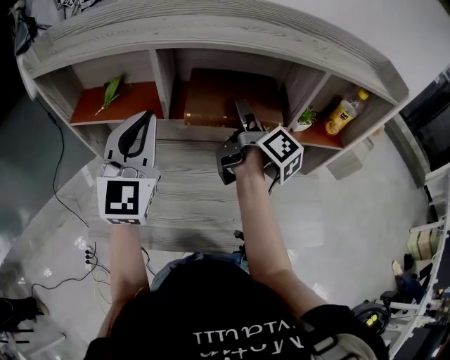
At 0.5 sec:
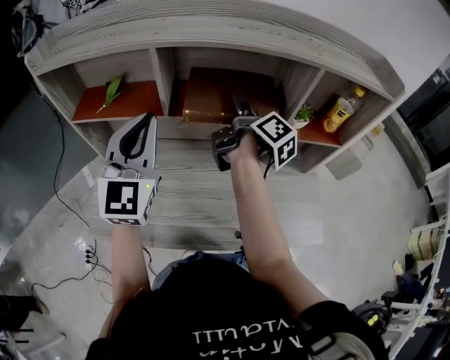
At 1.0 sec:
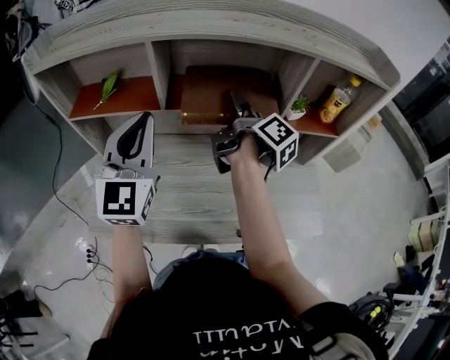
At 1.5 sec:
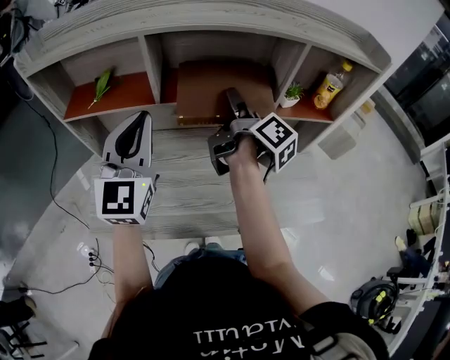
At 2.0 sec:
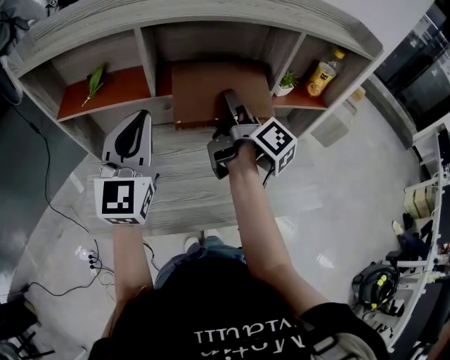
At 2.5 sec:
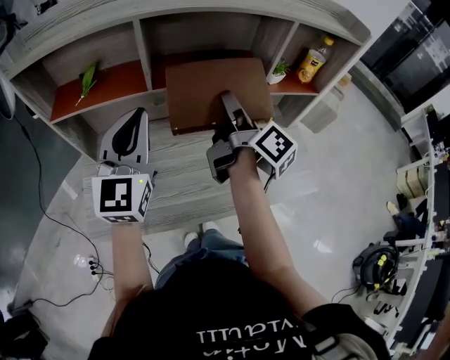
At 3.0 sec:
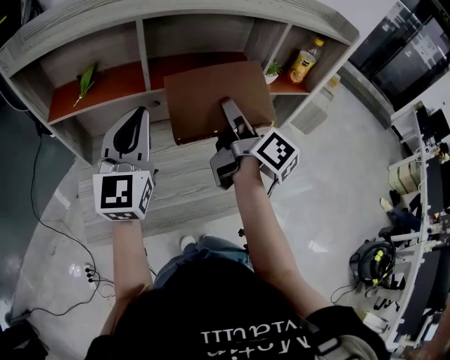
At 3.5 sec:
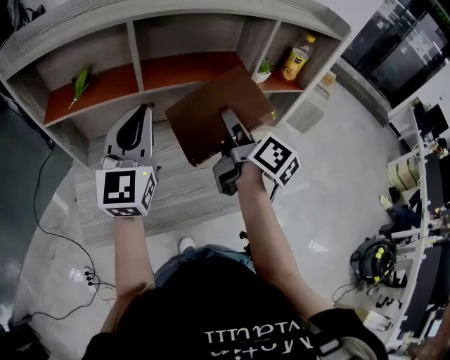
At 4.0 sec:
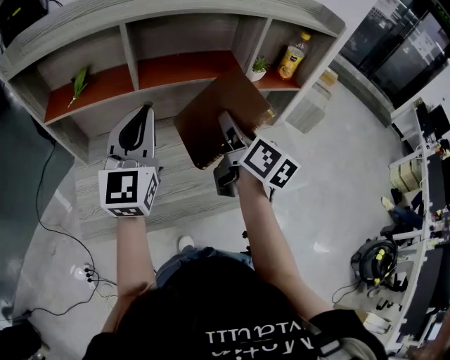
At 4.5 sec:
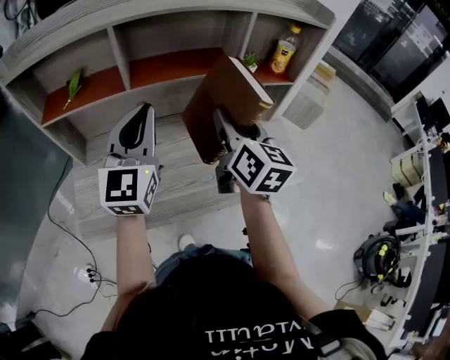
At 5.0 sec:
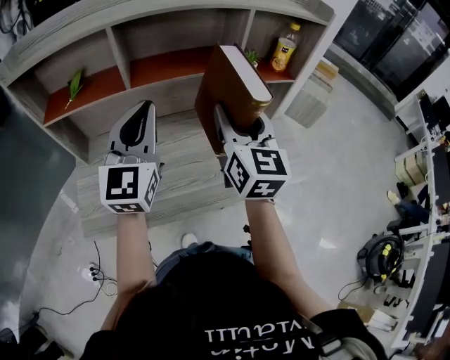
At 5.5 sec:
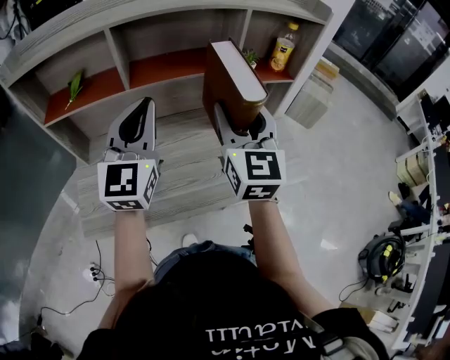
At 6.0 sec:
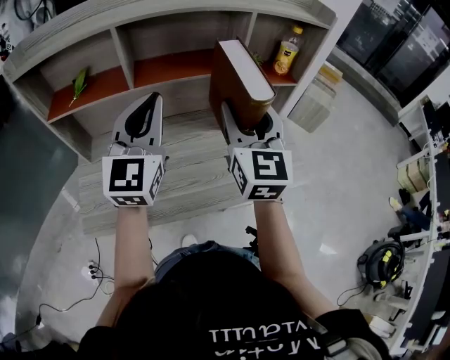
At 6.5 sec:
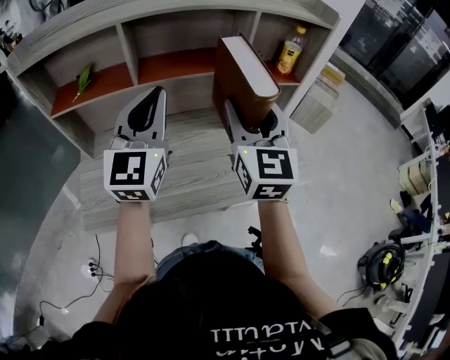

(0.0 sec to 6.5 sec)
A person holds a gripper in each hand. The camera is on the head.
0.0 sec - 2.0 sec: The left gripper moves approximately 5 cm. Meanwhile the right gripper goes about 5 cm backward.
2.0 sec - 4.5 sec: The left gripper moves to the right, approximately 5 cm; the right gripper is displaced backward and to the right by some 15 cm, and twists approximately 50 degrees counterclockwise, seen from behind.
4.5 sec - 6.5 sec: The right gripper travels upward by approximately 5 cm, and swivels approximately 30 degrees.

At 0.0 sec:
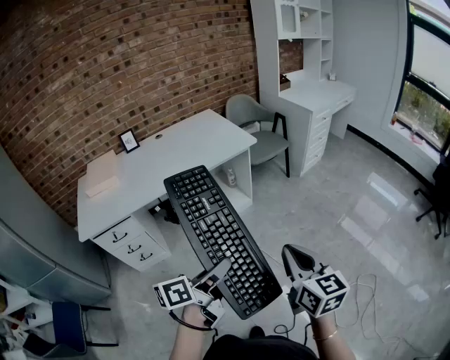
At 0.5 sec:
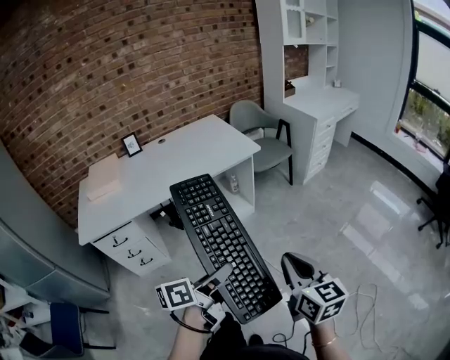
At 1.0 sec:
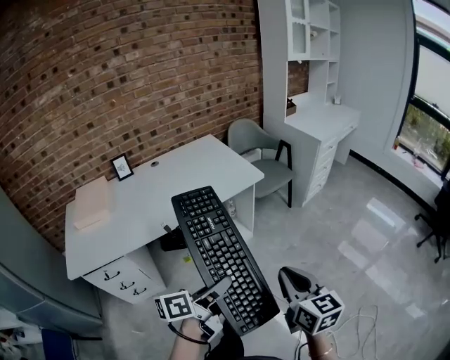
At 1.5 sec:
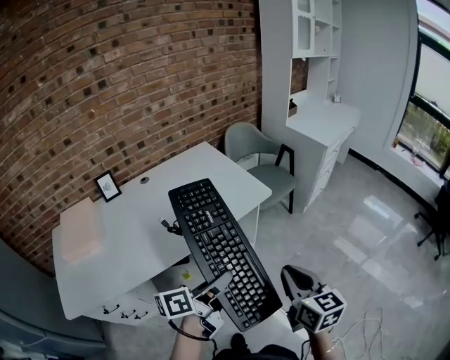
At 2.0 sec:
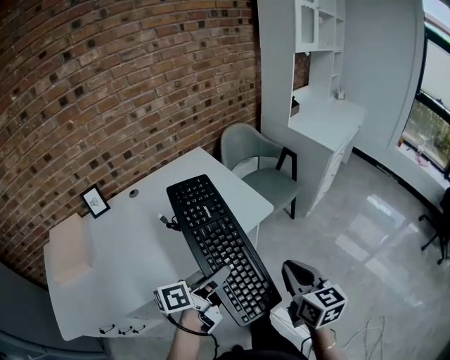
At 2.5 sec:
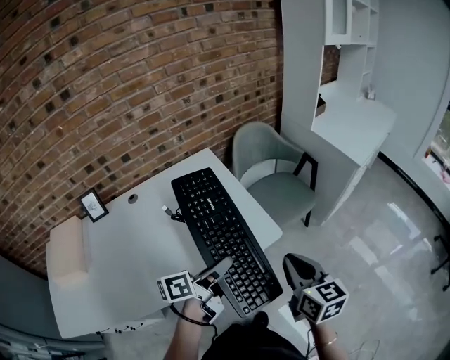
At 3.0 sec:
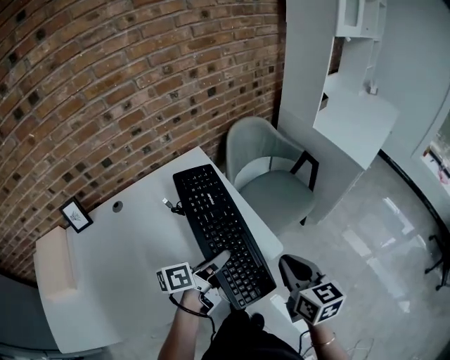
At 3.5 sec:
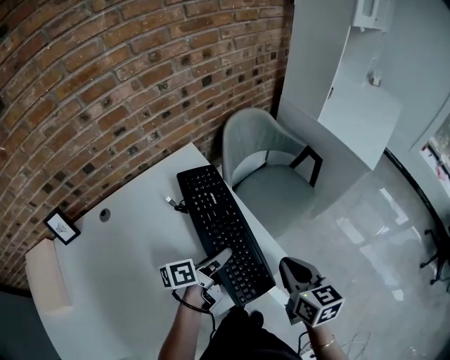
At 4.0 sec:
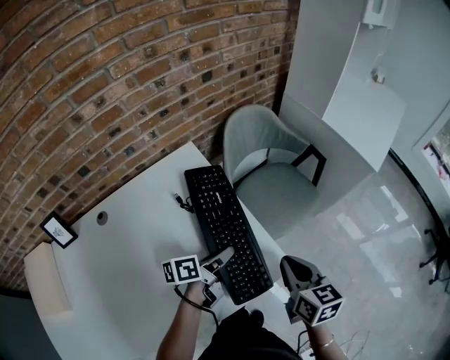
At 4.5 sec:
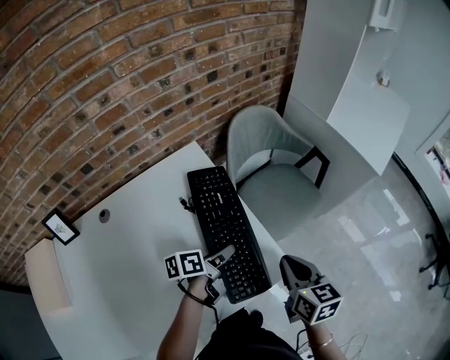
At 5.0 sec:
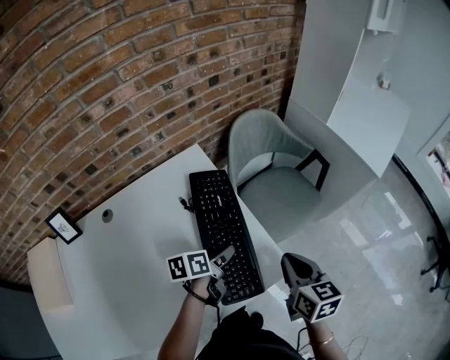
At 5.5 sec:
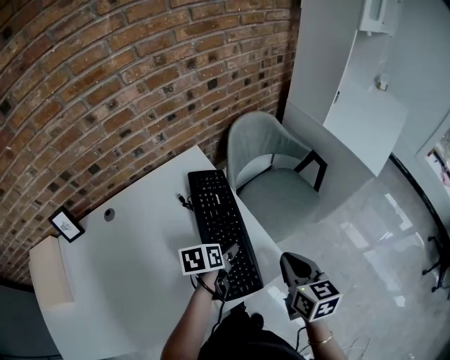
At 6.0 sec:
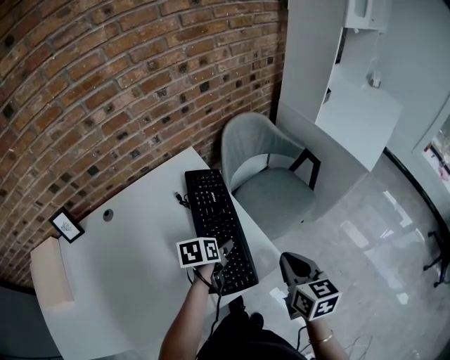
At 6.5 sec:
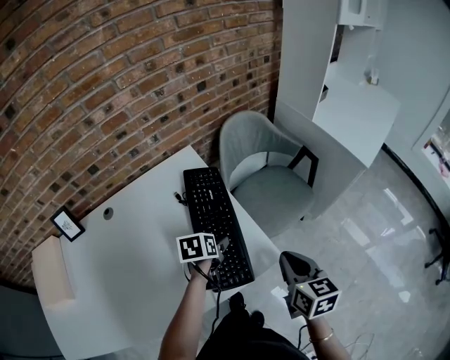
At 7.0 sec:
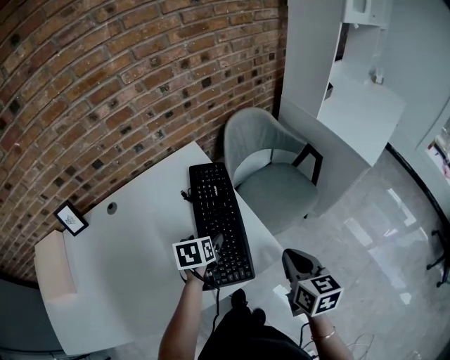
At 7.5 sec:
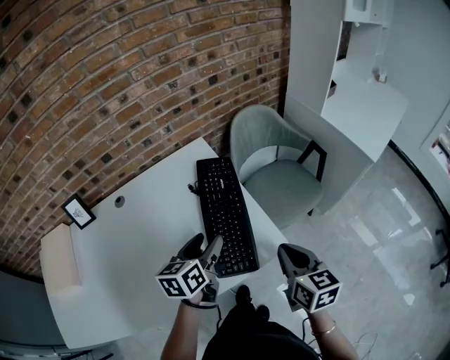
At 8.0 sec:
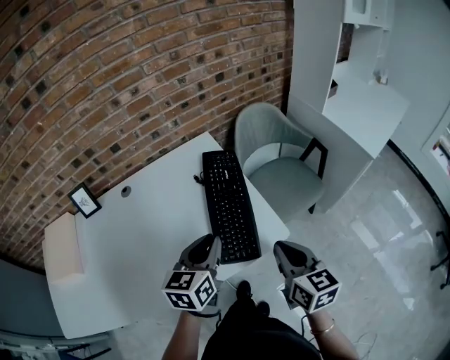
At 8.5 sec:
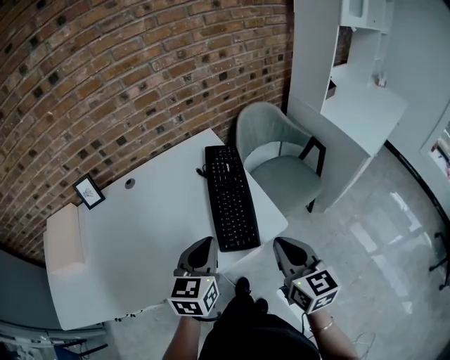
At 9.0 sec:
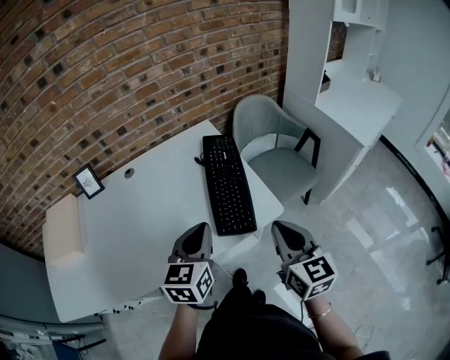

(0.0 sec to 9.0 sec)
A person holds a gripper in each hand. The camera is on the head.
0.0 sec - 2.0 sec: The two grippers travel together, forward, some 50 cm.
2.0 sec - 4.5 sec: The right gripper goes roughly 35 cm forward. The left gripper goes some 40 cm forward and downward, and swivels roughly 30 degrees.
4.5 sec - 7.0 sec: The left gripper shifts by some 5 cm, changes its angle by about 50 degrees, and opens up, while the right gripper shifts by roughly 5 cm.
7.0 sec - 9.0 sec: The right gripper heads backward, upward and to the left, covering roughly 15 cm, and changes its angle by some 20 degrees, while the left gripper heads backward and upward, covering some 25 cm, points its fingers approximately 40 degrees further upward, and closes its fingers.

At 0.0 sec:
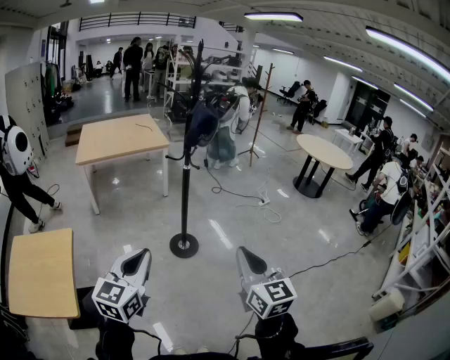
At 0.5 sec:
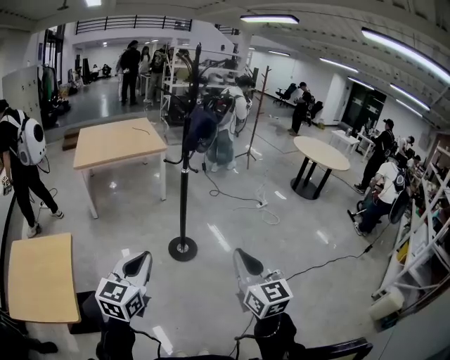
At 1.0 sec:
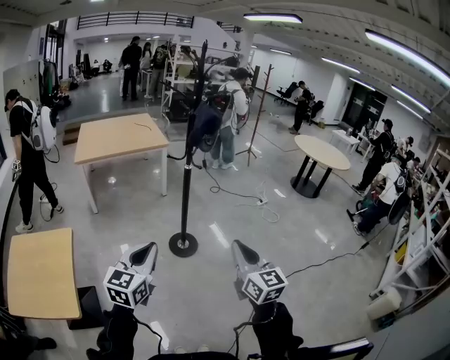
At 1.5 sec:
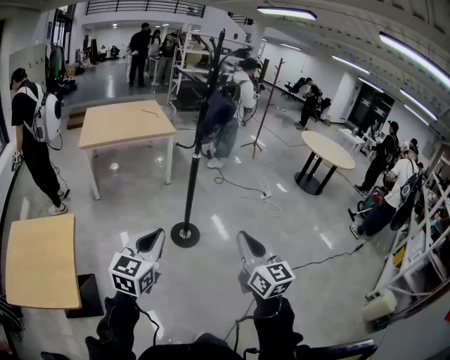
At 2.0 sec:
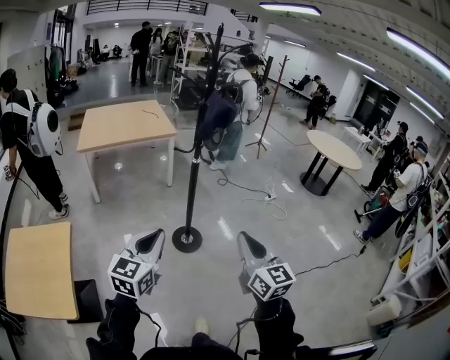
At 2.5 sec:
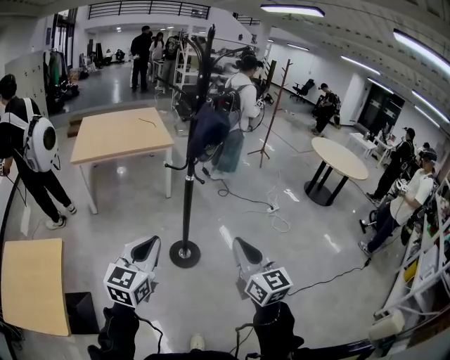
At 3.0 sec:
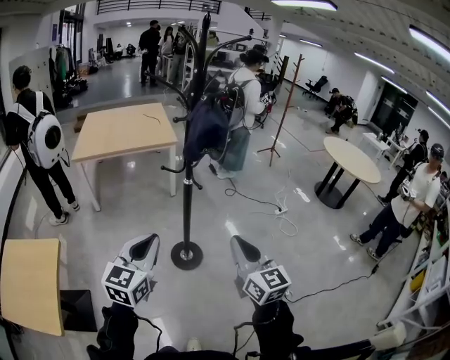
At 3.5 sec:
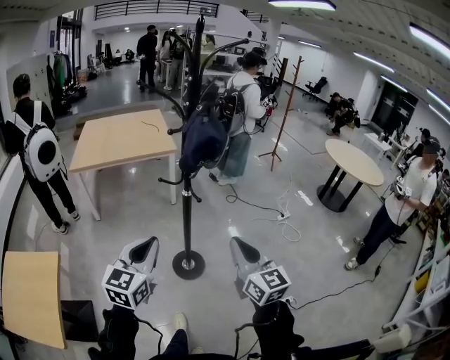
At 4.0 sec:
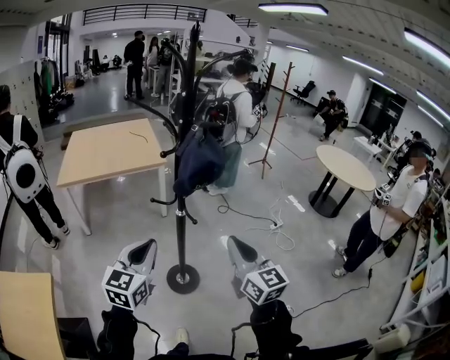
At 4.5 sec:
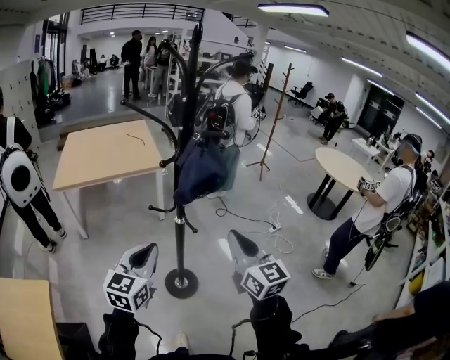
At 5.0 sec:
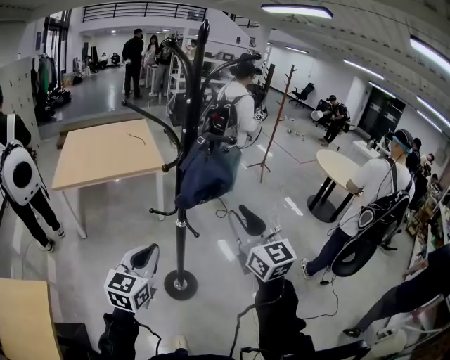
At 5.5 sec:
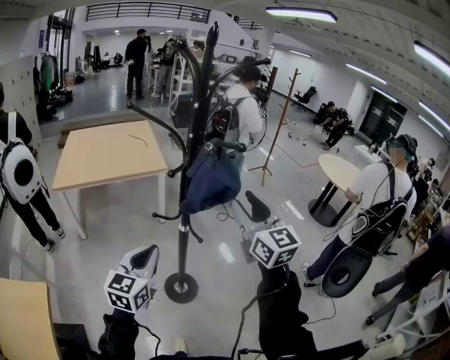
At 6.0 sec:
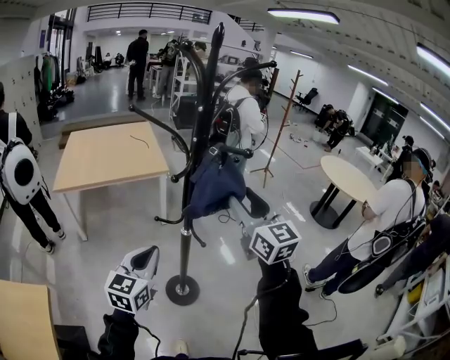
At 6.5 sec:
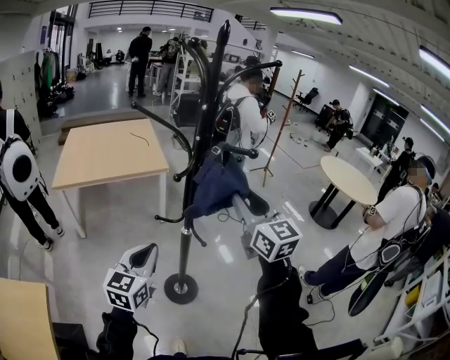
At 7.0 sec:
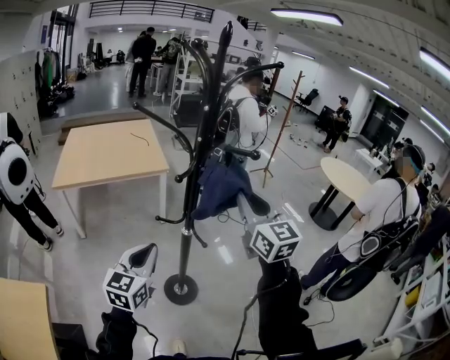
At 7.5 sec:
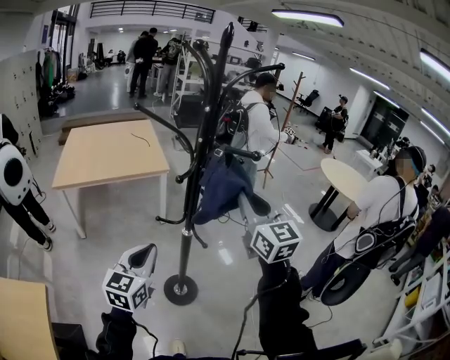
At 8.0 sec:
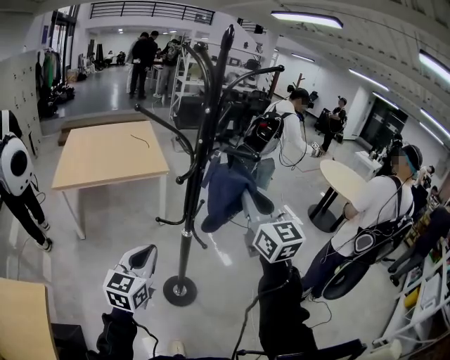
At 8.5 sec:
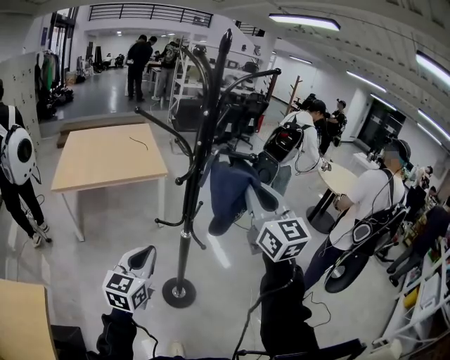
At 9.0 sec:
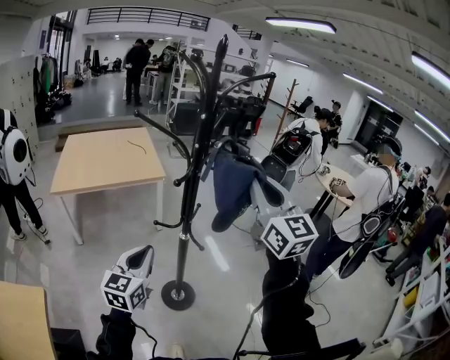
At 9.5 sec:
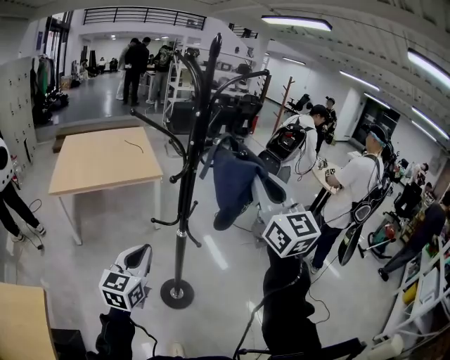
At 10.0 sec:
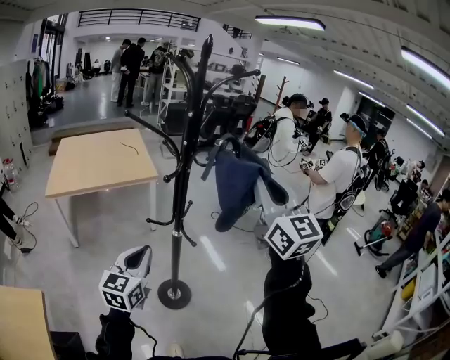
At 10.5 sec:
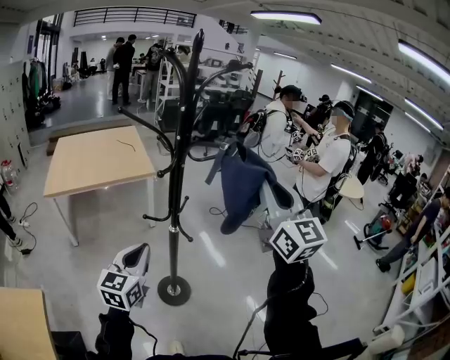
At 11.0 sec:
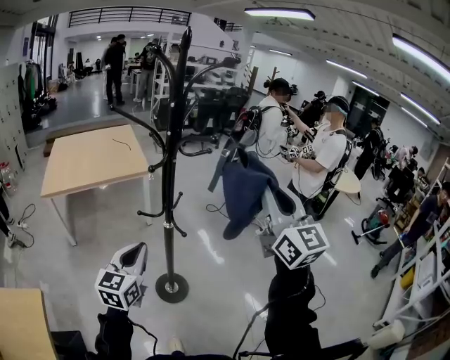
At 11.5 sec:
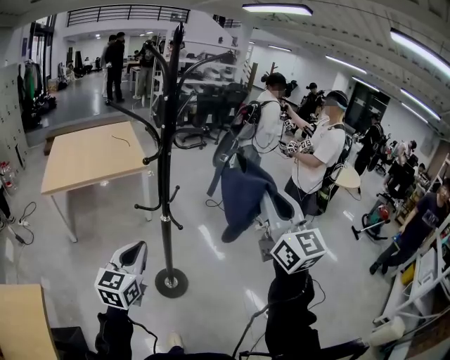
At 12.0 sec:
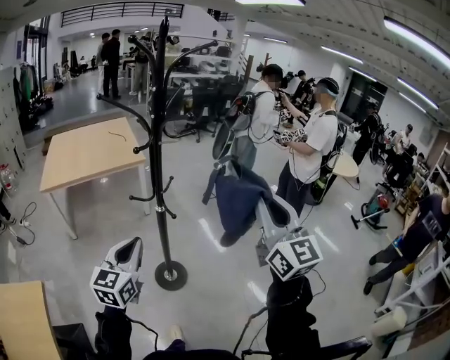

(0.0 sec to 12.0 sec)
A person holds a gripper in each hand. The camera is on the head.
0.0 sec - 2.0 sec: Both grippers move forward, about 10 cm.
2.0 sec - 4.0 sec: Both grippers travel together forward, approximately 30 cm.
4.0 sec - 6.0 sec: The right gripper shifts some 20 cm forward and upward, and opens its fingers, while the left gripper goes roughly 10 cm forward.
6.0 sec - 8.0 sec: The right gripper closes up.
8.0 sec - 10.0 sec: The right gripper heads upward and backward, covering approximately 10 cm.
10.0 sec - 12.0 sec: The left gripper goes approximately 10 cm backward and to the right. Meanwhile the right gripper travels backward, to the right and downward by roughly 15 cm.
